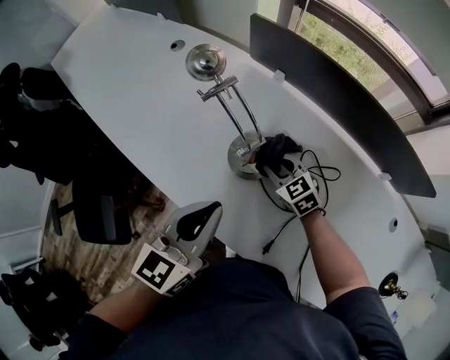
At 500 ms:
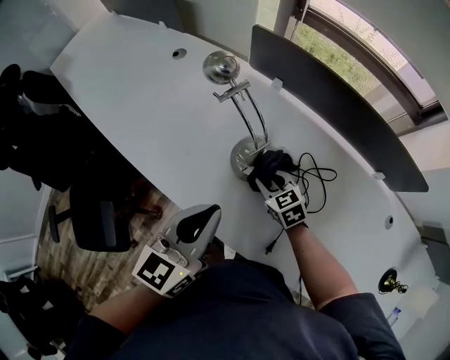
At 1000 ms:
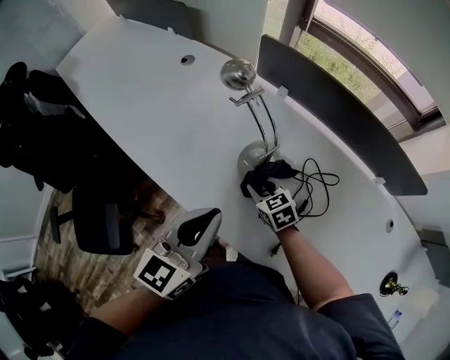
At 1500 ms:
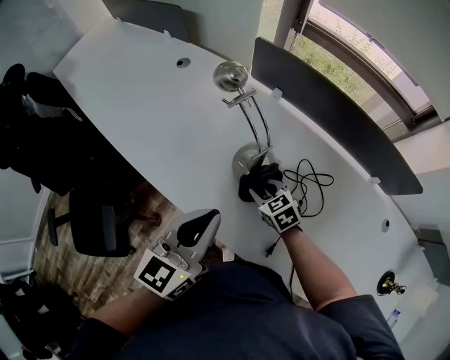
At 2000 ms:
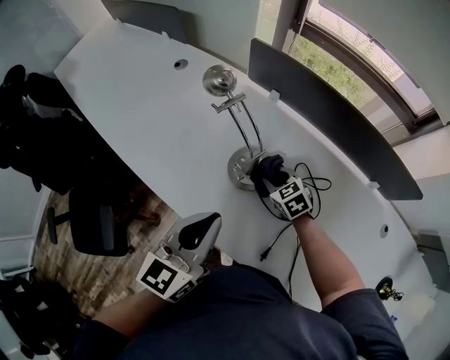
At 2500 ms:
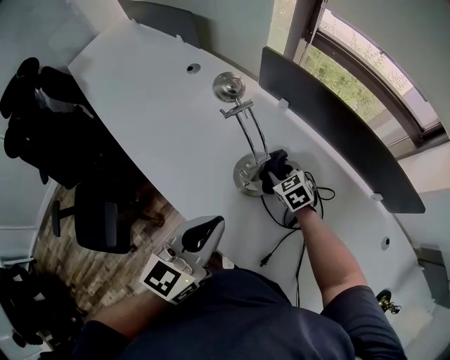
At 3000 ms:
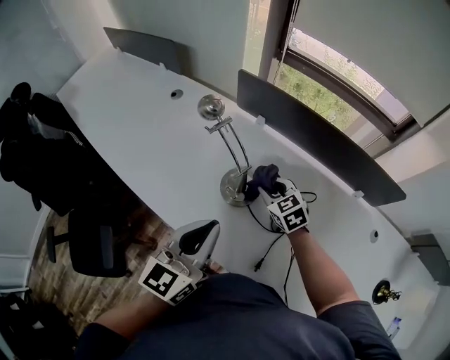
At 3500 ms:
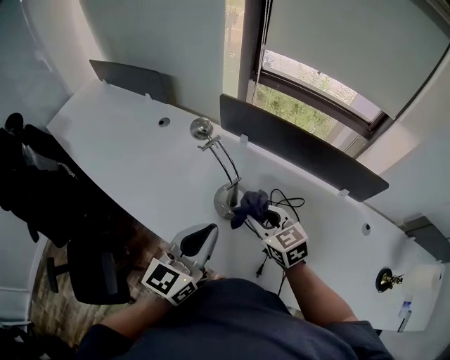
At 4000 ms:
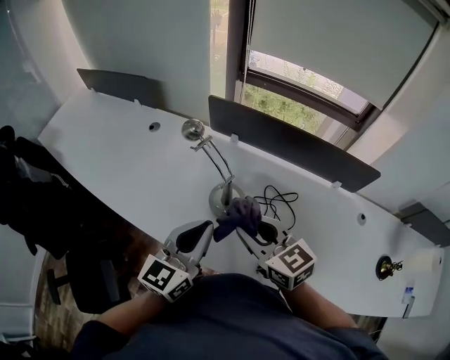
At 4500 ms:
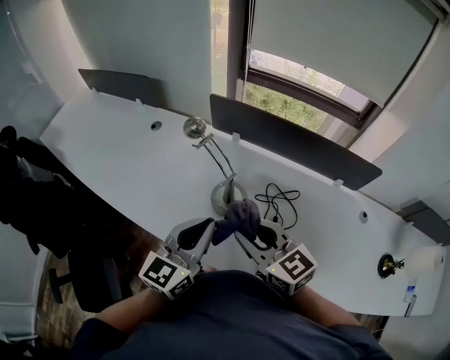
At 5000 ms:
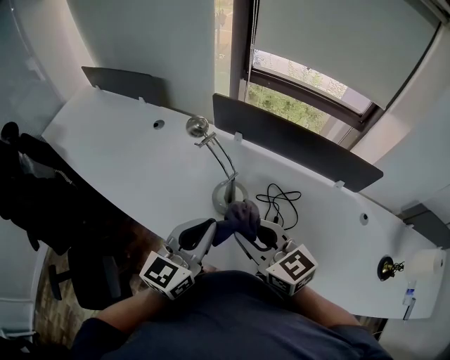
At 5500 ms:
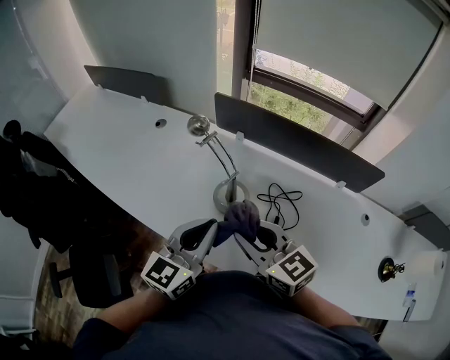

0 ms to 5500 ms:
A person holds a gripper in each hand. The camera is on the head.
0 ms to 2000 ms: The right gripper goes to the left and returns, some 5 cm each way.
2000 ms to 3500 ms: The left gripper travels upward by about 5 cm; the right gripper shifts roughly 20 cm upward and backward, and rotates roughly 20 degrees.
3500 ms to 5500 ms: The right gripper heads upward and backward, covering roughly 15 cm.

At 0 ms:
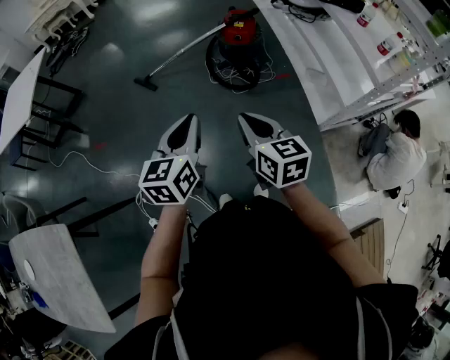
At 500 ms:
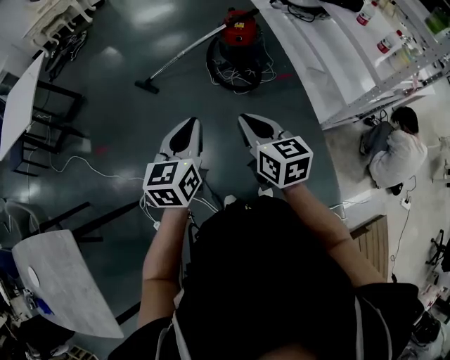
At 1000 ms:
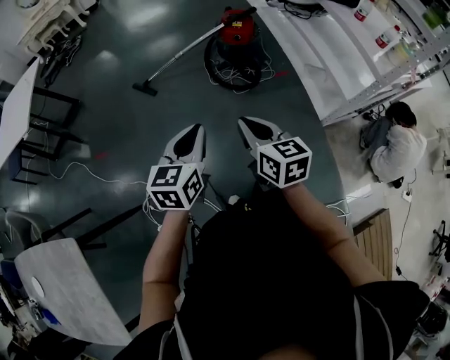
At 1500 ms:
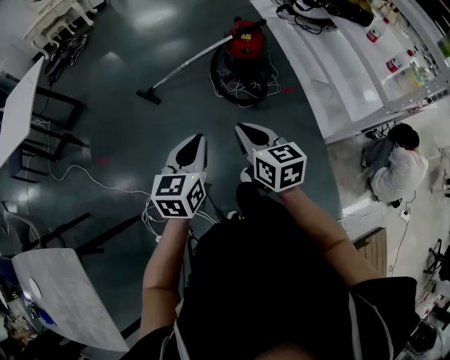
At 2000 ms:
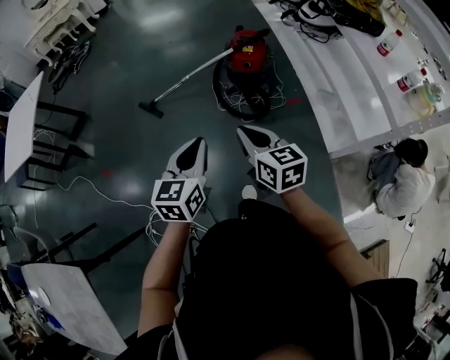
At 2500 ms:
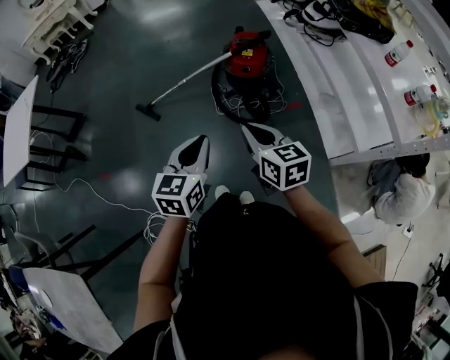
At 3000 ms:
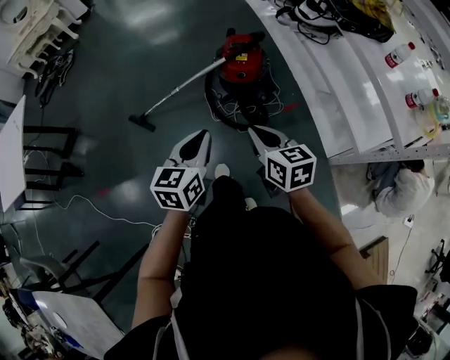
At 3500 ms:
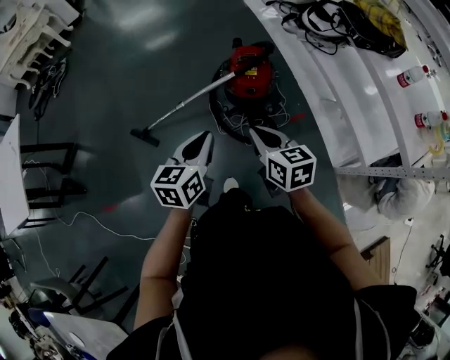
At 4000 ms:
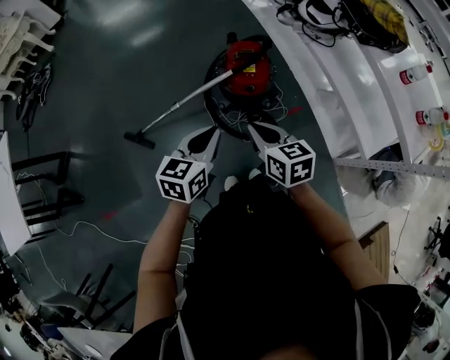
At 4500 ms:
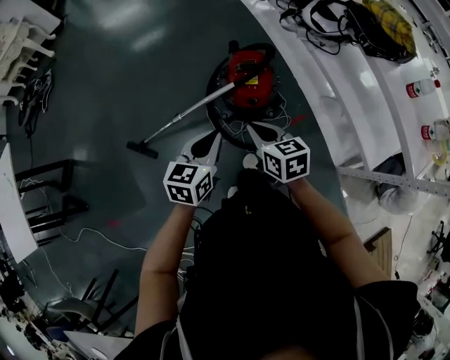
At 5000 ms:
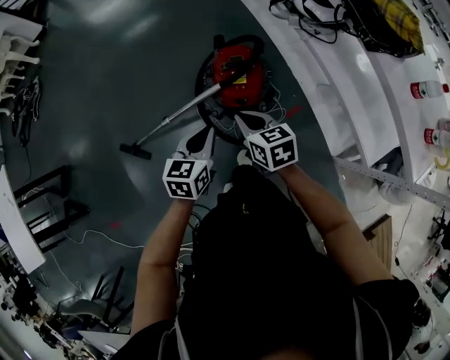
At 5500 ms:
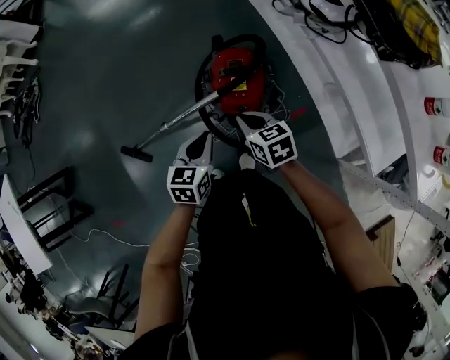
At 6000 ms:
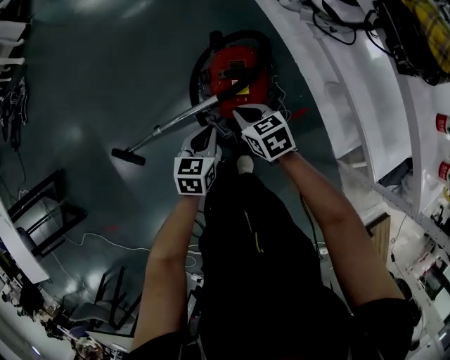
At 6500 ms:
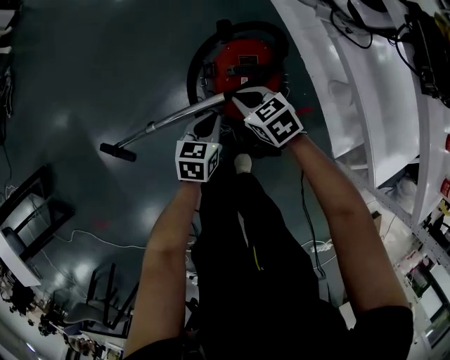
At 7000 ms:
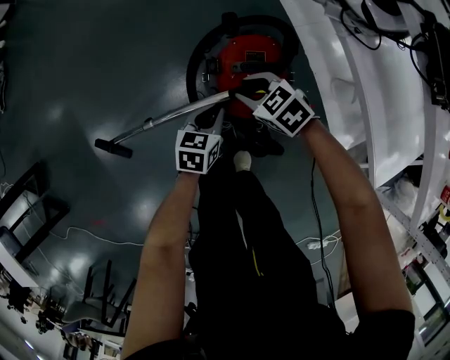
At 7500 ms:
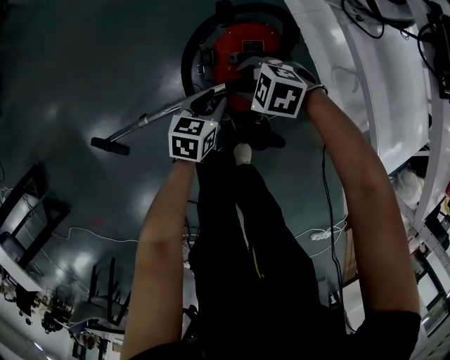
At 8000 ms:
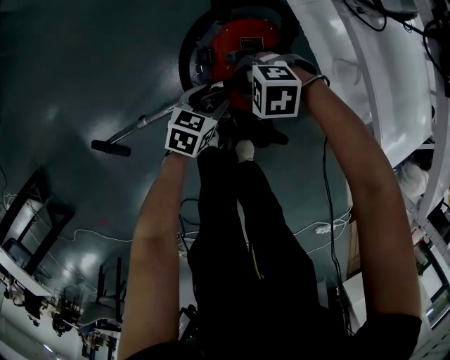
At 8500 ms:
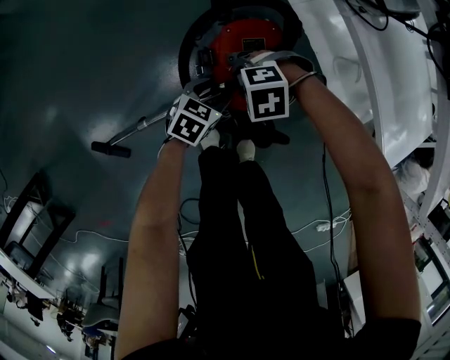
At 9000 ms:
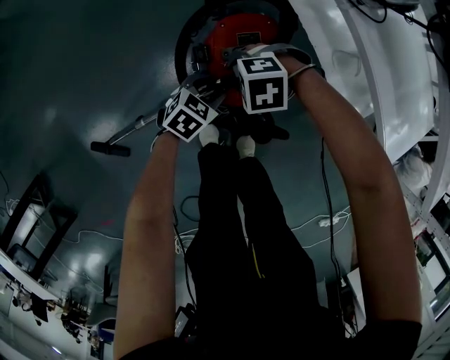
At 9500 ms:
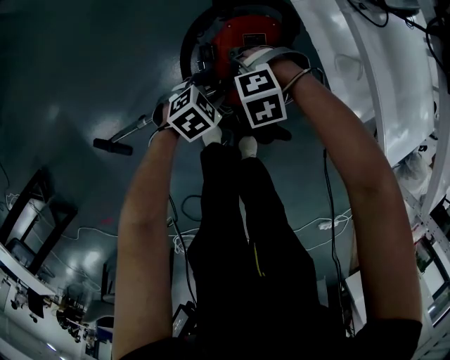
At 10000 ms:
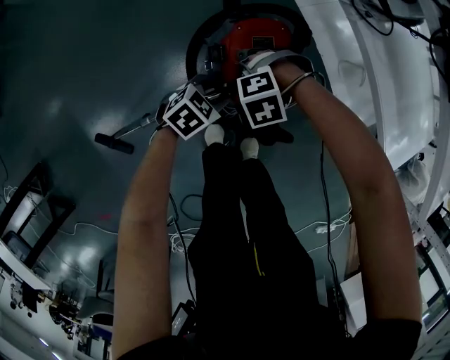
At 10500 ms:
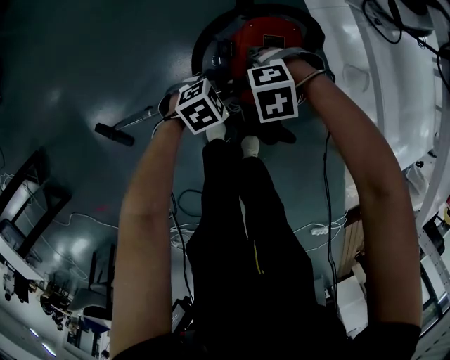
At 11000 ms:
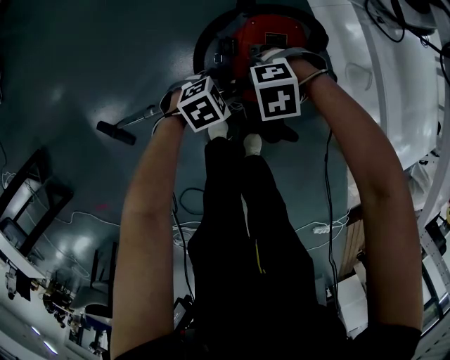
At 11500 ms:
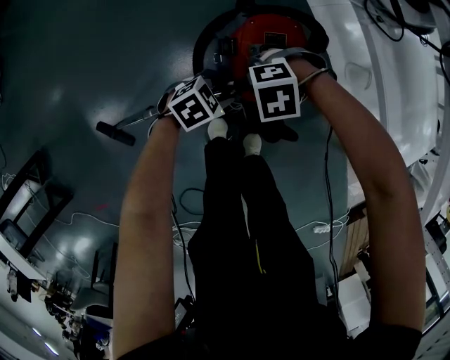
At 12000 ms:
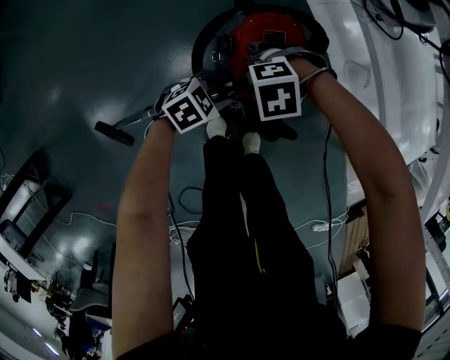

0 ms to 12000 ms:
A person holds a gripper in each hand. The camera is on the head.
0 ms to 2000 ms: The two grippers go approximately 20 cm forward.
2000 ms to 4000 ms: Both grippers travel together forward, approximately 35 cm. The left gripper swivels roughly 20 degrees.
4000 ms to 6000 ms: Both grippers move forward and downward, some 35 cm.
6000 ms to 8000 ms: The grippers both shift downward by about 15 cm. The left gripper rotates roughly 20 degrees, and opens its fingers. Meanwhile the right gripper rolls counterclockwise, seen from behind, by some 60 degrees, and opens up.
8000 ms to 10000 ms: The right gripper swivels about 20 degrees. Meanwhile the left gripper swivels roughly 30 degrees.
10000 ms to 12000 ms: The grippers make only small movements.

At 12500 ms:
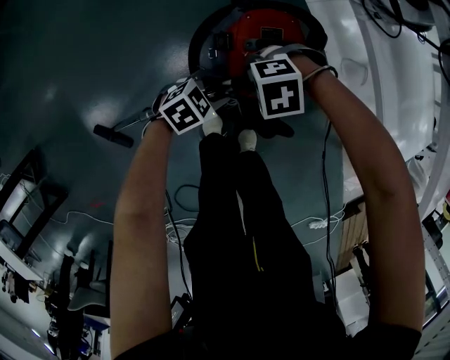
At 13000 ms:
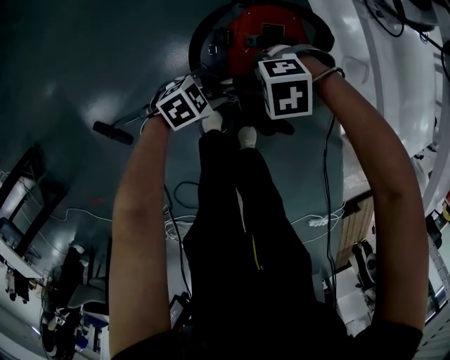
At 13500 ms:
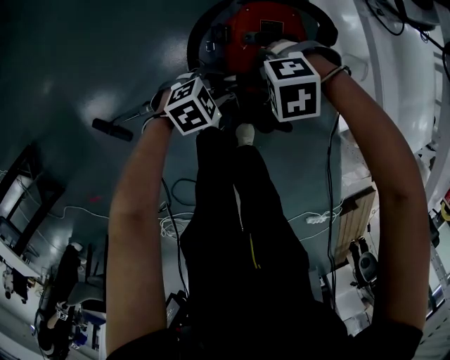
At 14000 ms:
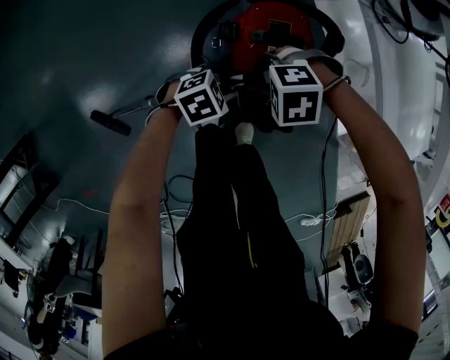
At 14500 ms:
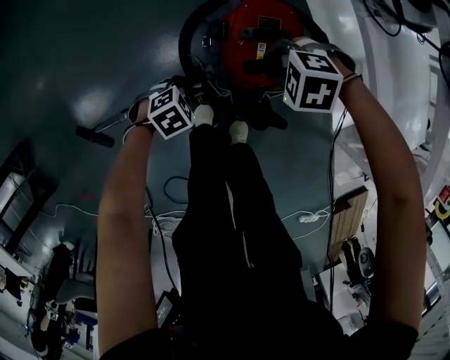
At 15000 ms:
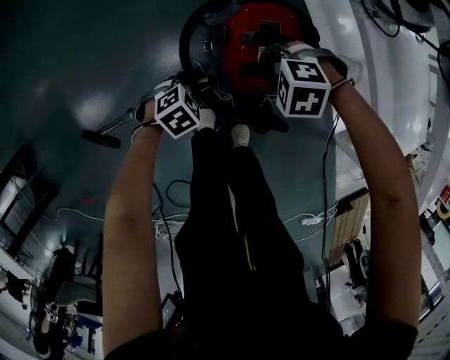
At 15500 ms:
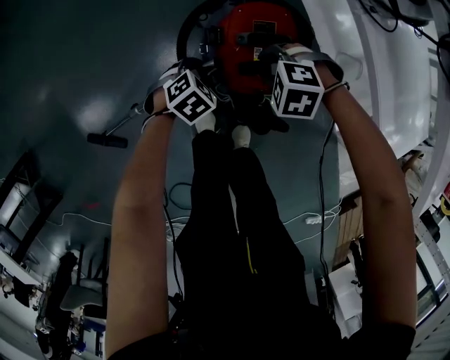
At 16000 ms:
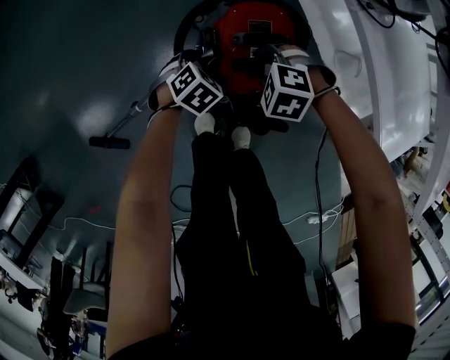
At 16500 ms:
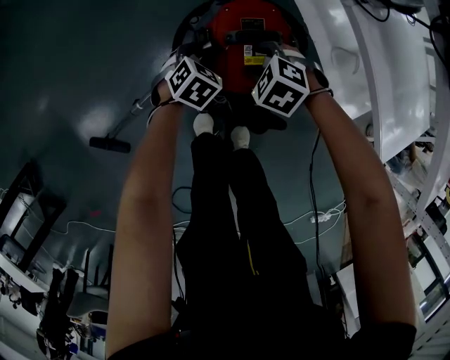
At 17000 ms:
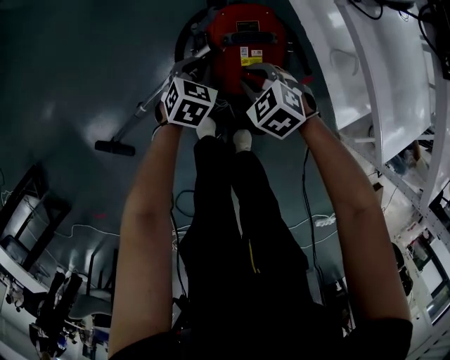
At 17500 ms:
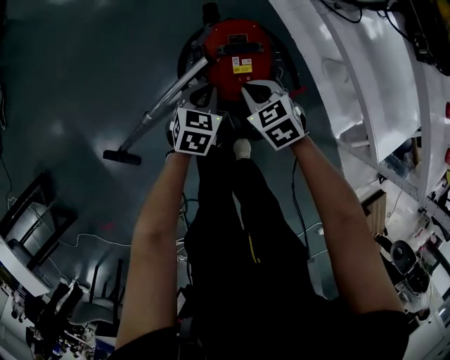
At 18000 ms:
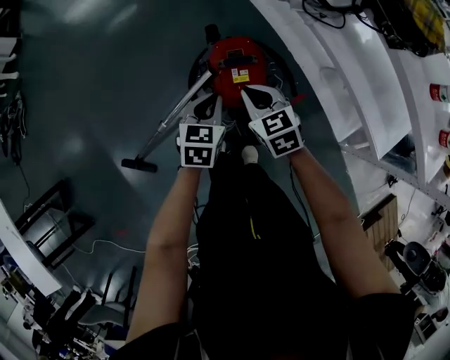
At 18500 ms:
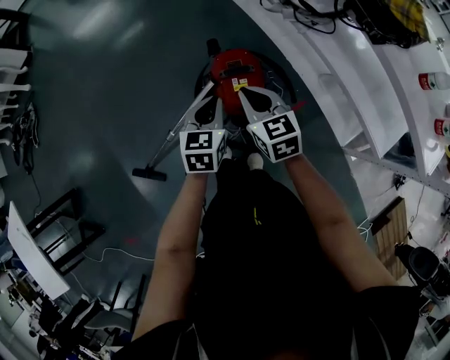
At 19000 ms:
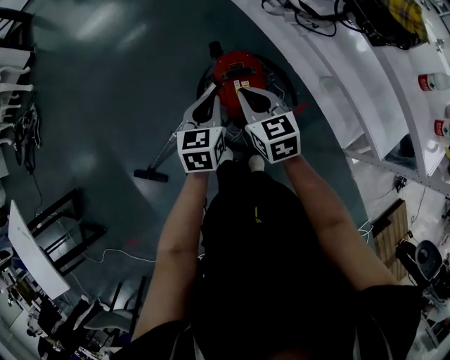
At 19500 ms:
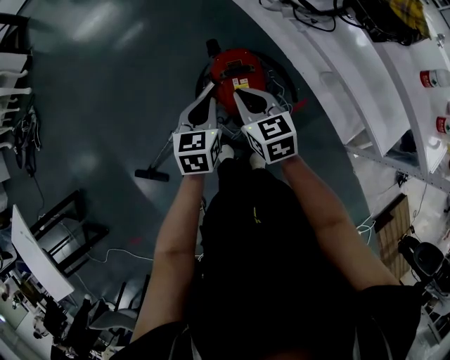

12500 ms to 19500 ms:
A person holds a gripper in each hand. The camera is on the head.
12500 ms to 14500 ms: The right gripper ends up approximately 5 cm from where it was. The left gripper ends up some 10 cm from where it was.
14500 ms to 16000 ms: The left gripper changes place by about 10 cm, and swivels some 20 degrees.
16000 ms to 17500 ms: The two grippers go about 15 cm upward. The right gripper twists roughly 40 degrees clockwise, seen from behind, and closes; the left gripper turns by approximately 30 degrees, and closes up.
17500 ms to 19500 ms: Both grippers move upward, about 20 cm. The right gripper changes its angle by roughly 30 degrees.

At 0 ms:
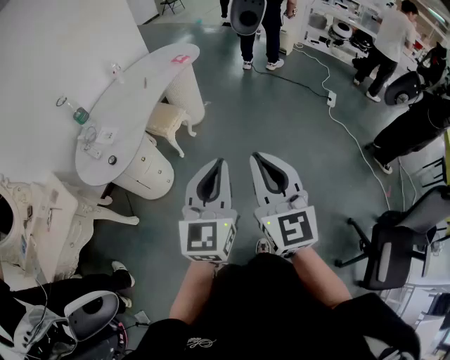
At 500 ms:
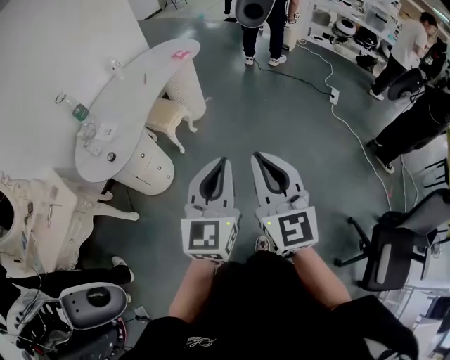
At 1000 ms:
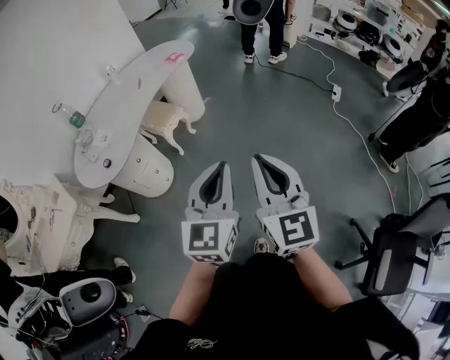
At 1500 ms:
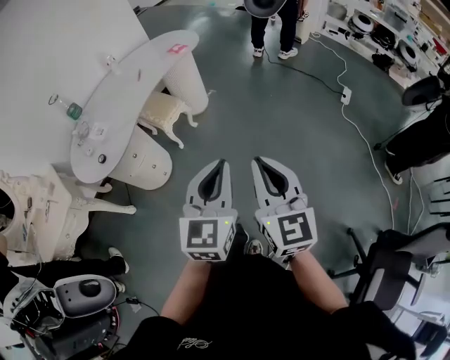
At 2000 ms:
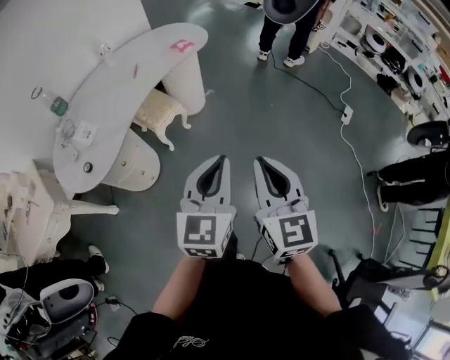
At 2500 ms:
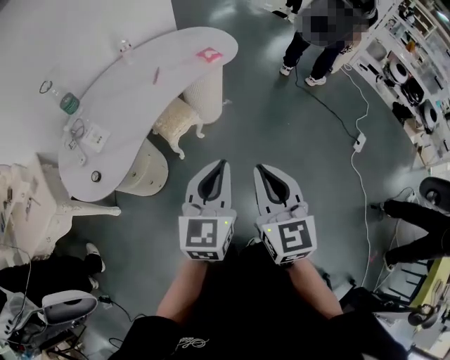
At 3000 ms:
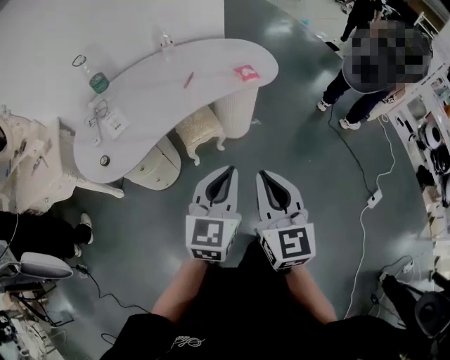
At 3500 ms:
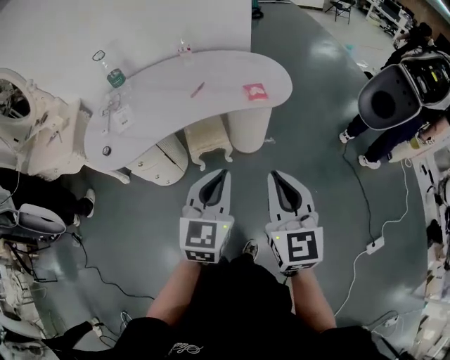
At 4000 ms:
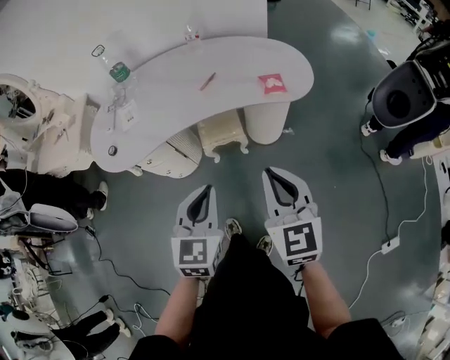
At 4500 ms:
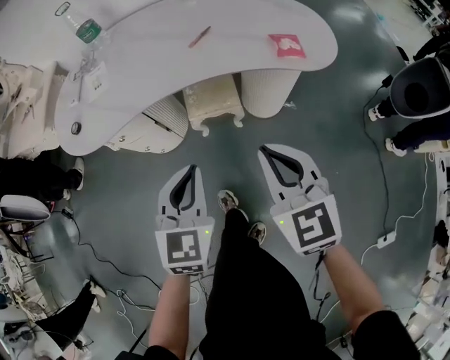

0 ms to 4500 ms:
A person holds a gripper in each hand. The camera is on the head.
0 ms to 2000 ms: Both grippers travel together forward, some 25 cm.
2000 ms to 4500 ms: The left gripper ends up some 40 cm from where it was, and swivels about 50 degrees, while the right gripper ends up approximately 50 cm from where it was, and swivels approximately 60 degrees.
